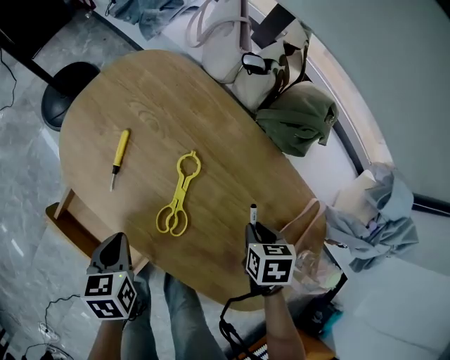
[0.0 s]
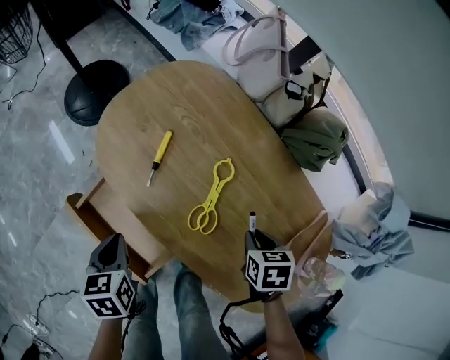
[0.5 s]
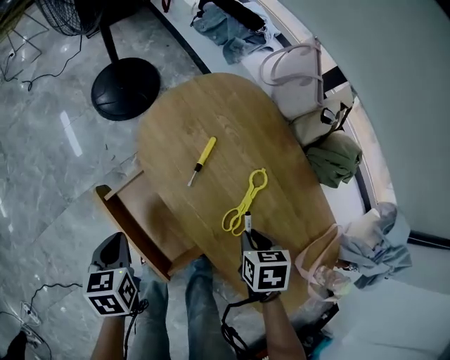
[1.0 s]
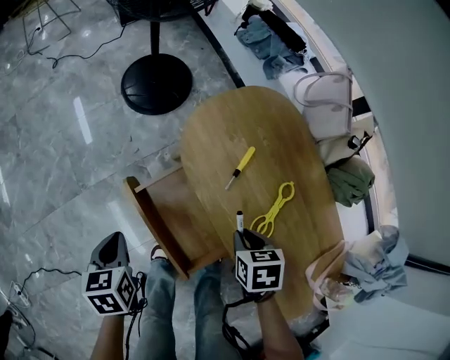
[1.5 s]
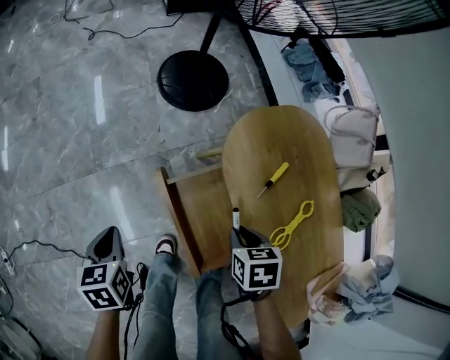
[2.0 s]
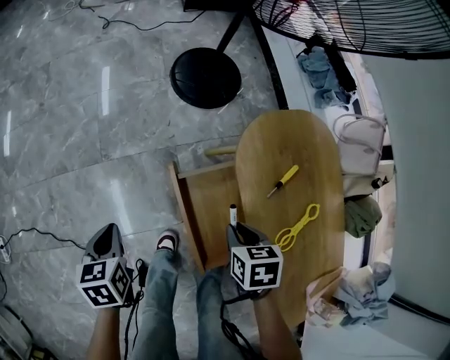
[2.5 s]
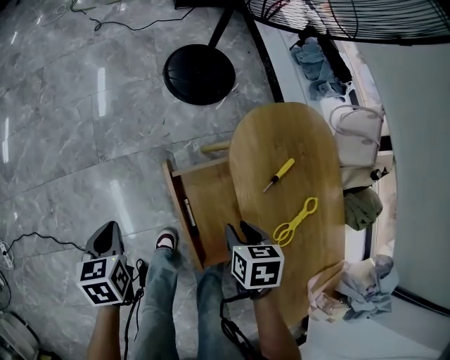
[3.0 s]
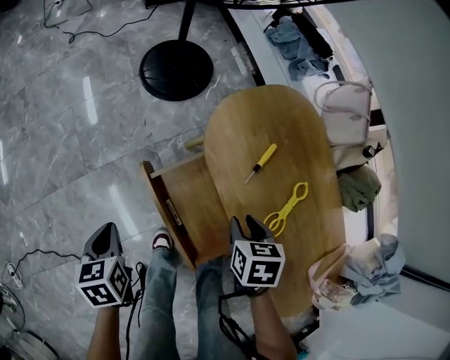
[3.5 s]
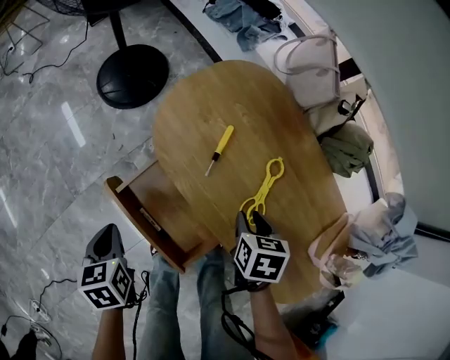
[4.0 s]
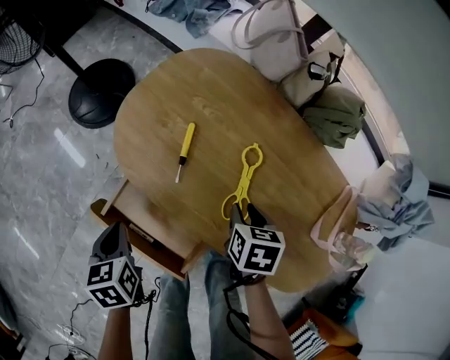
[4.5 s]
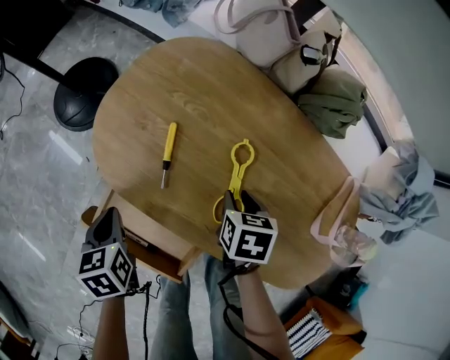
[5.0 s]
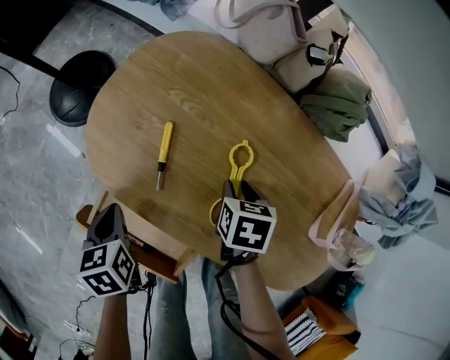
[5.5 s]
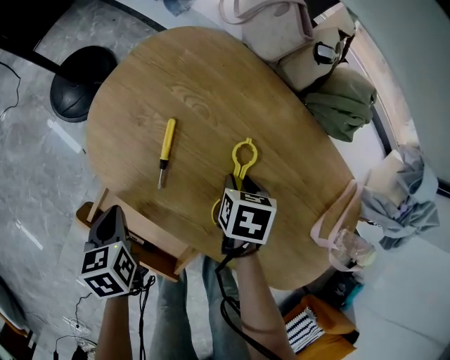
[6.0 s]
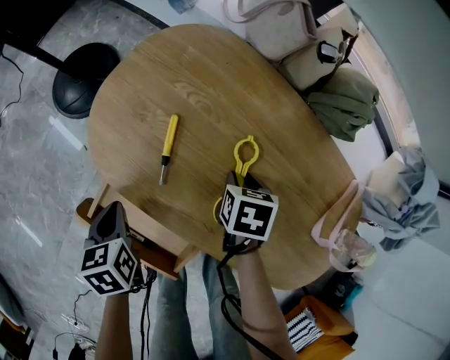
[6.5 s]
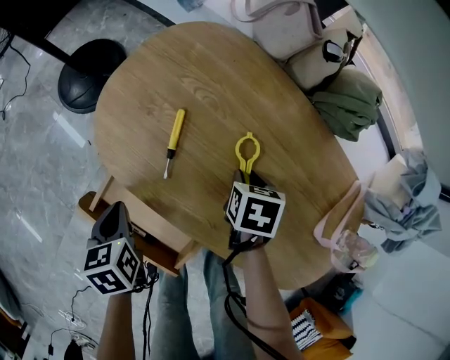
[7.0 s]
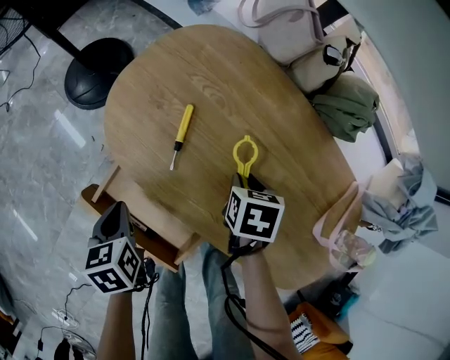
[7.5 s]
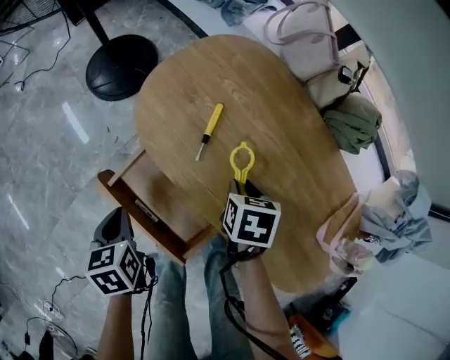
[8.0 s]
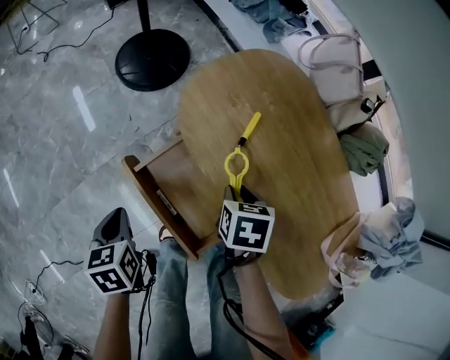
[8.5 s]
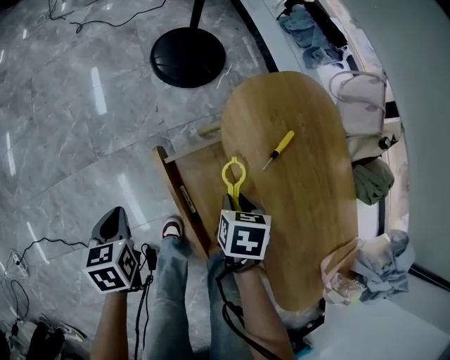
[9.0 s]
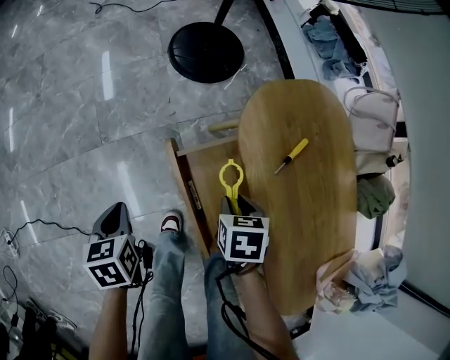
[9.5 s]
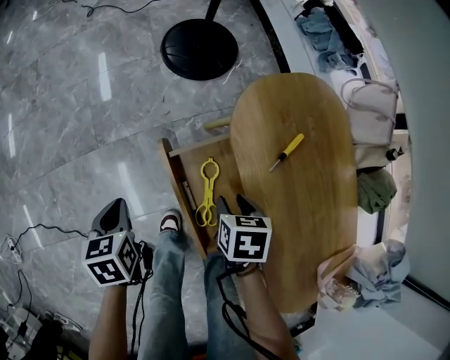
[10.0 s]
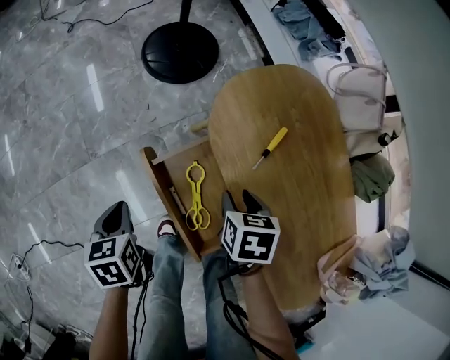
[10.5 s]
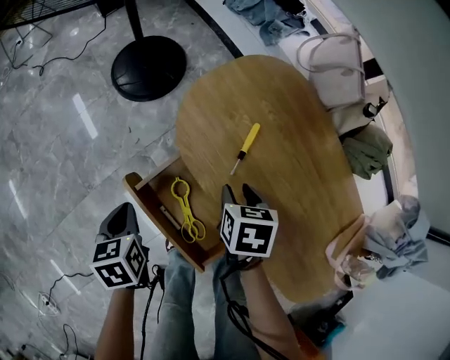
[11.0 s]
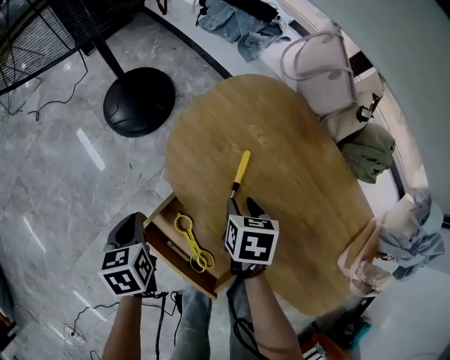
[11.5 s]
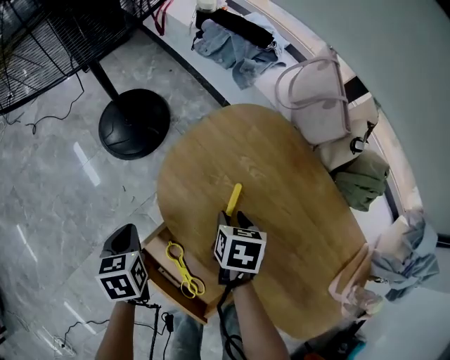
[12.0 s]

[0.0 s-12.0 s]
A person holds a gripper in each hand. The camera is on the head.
0.0 to 2.0 s: The left gripper moves roughly 40 cm, and swivels roughly 40 degrees. Meanwhile the right gripper shifts by roughly 40 cm, and rotates some 30 degrees.
2.0 to 4.0 s: The right gripper shifts by approximately 15 cm, and rotates about 30 degrees. The left gripper shifts by some 15 cm.
4.0 to 6.0 s: The right gripper travels forward, to the right and downward by roughly 15 cm. Meanwhile the left gripper heads forward and to the right, covering roughly 20 cm.
6.0 to 8.0 s: The left gripper goes roughly 15 cm backward and to the left. Meanwhile the right gripper travels to the left and backward by roughly 10 cm.
8.0 to 10.0 s: The left gripper moves about 20 cm, and turns by roughly 20 degrees. Meanwhile the right gripper moves approximately 20 cm, and changes its angle by about 30 degrees.
10.0 to 12.0 s: The two grippers go roughly 25 cm forward and to the right. The right gripper changes its angle by some 30 degrees; the left gripper swivels approximately 20 degrees.

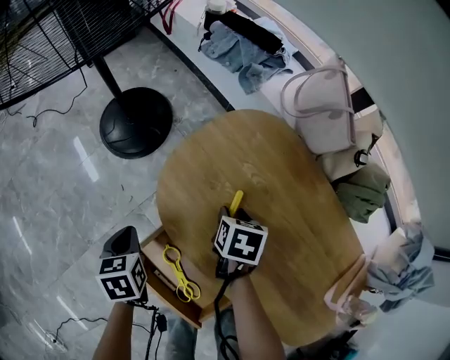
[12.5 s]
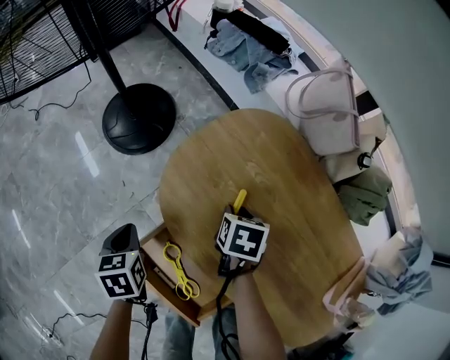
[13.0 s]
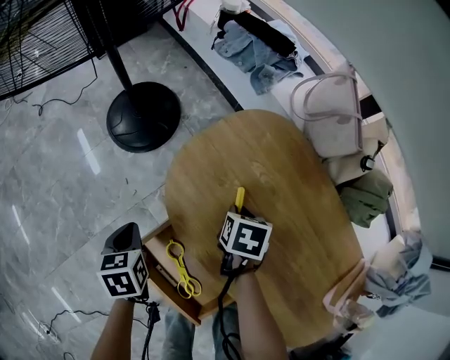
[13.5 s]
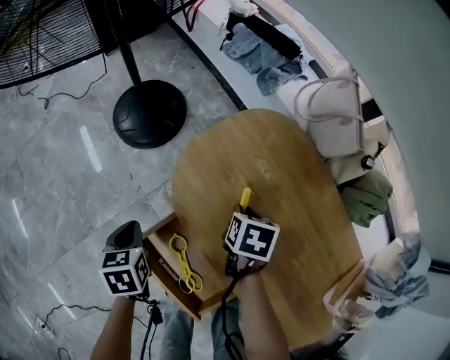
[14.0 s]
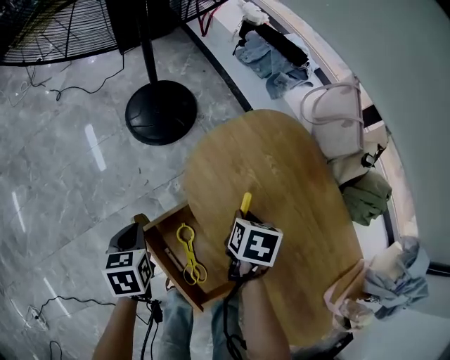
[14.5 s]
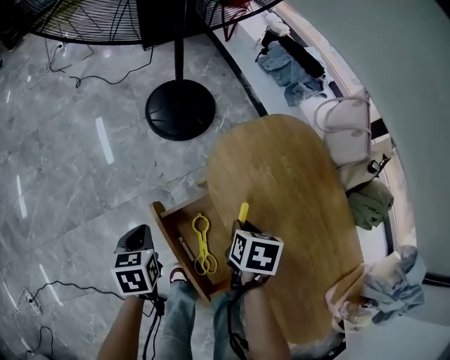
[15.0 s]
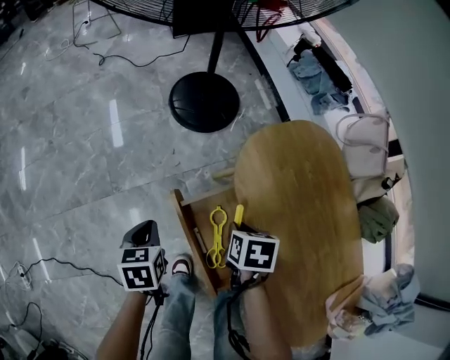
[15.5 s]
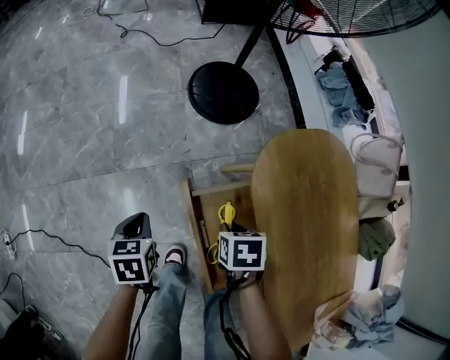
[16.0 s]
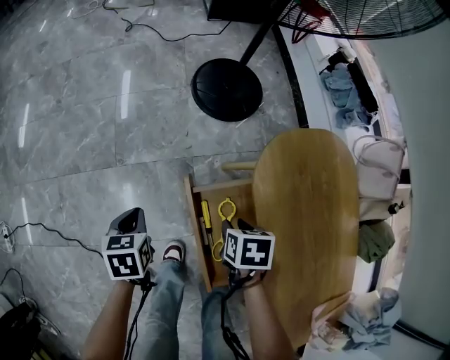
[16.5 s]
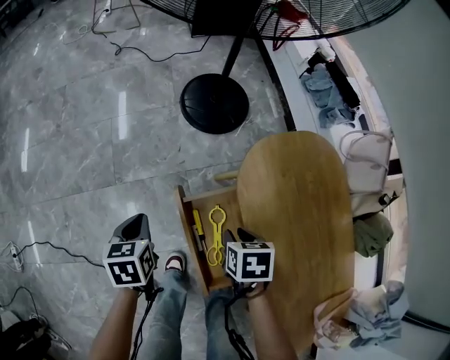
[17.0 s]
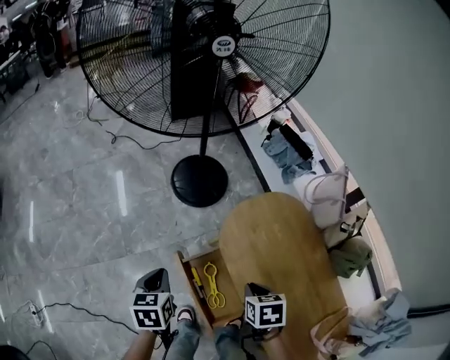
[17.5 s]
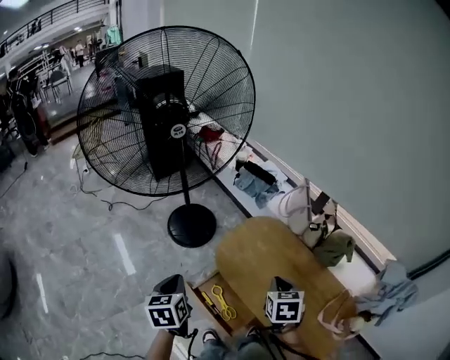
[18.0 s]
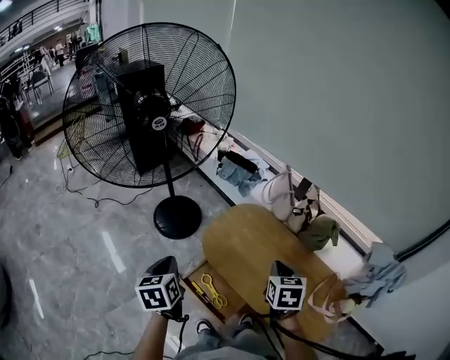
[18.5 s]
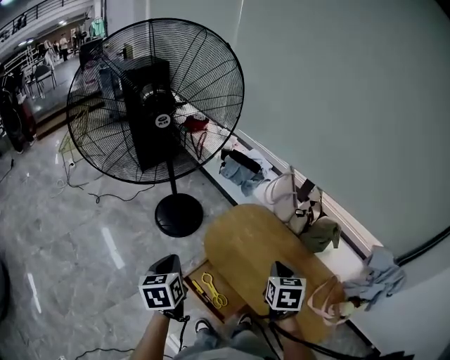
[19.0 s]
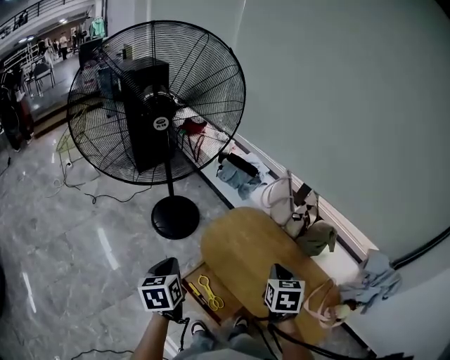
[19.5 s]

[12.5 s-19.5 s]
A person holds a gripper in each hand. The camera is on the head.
12.5 to 14.5 s: Both grippers move backward, roughly 10 cm. The right gripper closes its fingers.
14.5 to 16.0 s: The left gripper ends up roughly 15 cm from where it was. Meanwhile the right gripper ends up roughly 20 cm from where it was, and swivels roughly 40 degrees.
16.0 to 17.5 s: The grippers both shift upward by about 20 cm.
17.5 to 19.5 s: Both grippers move upward, roughly 25 cm. The right gripper rotates roughly 40 degrees.

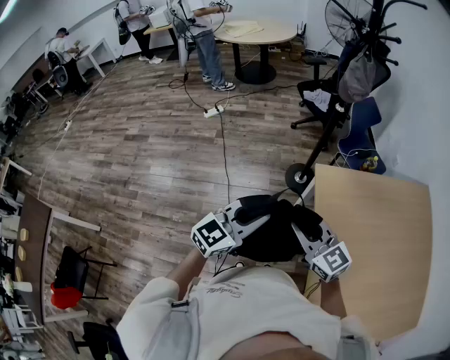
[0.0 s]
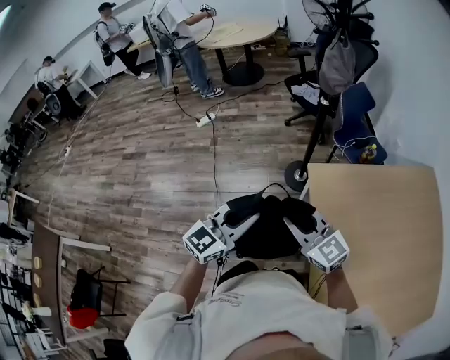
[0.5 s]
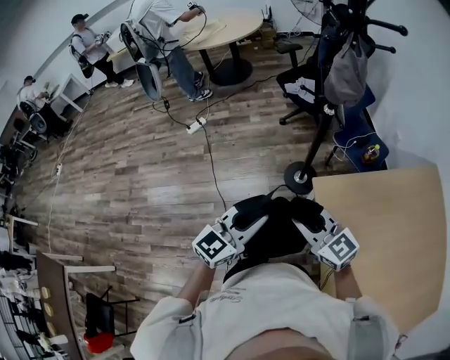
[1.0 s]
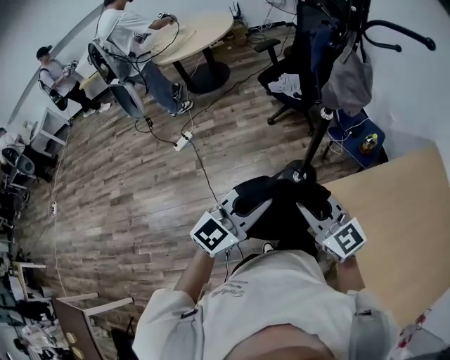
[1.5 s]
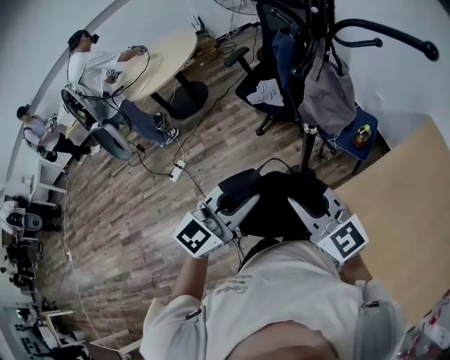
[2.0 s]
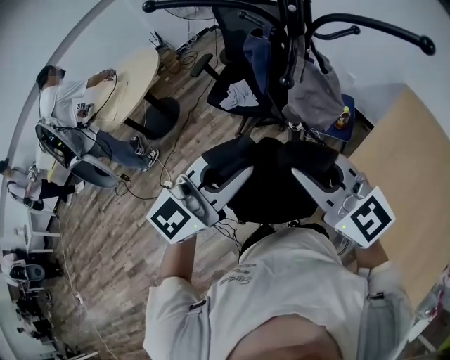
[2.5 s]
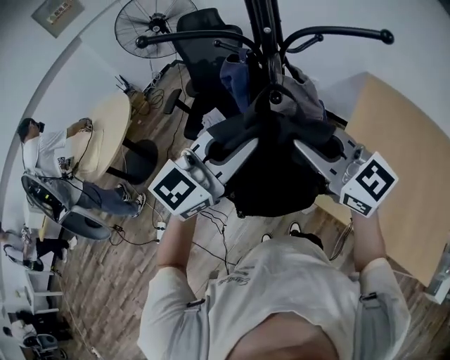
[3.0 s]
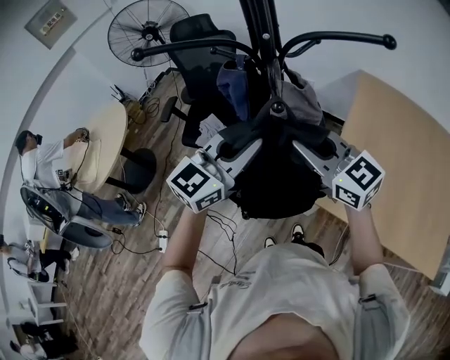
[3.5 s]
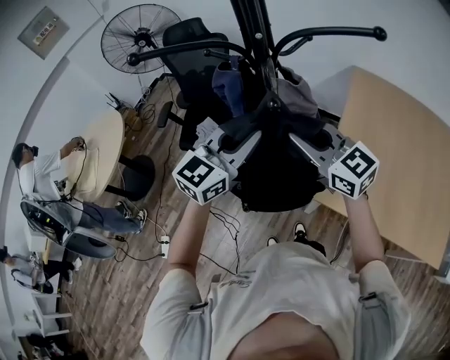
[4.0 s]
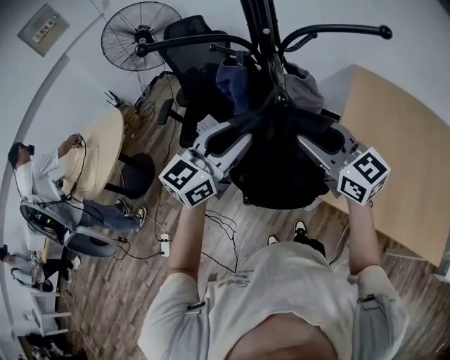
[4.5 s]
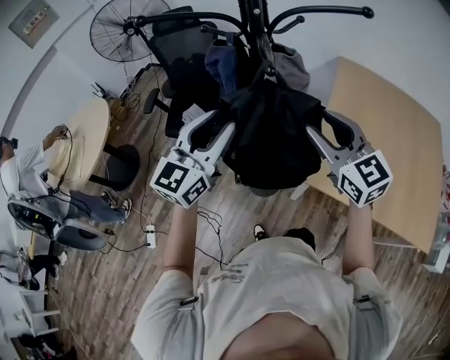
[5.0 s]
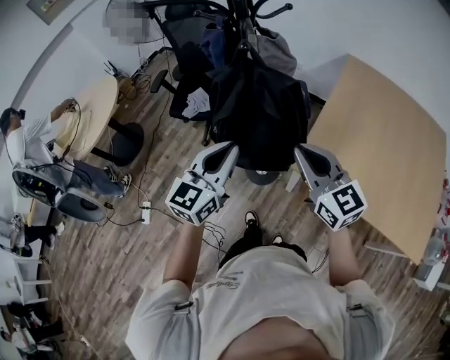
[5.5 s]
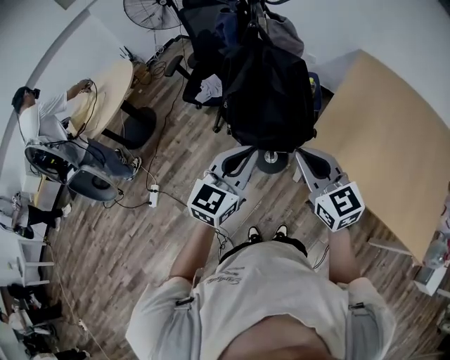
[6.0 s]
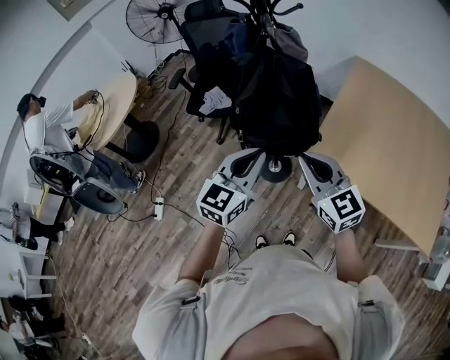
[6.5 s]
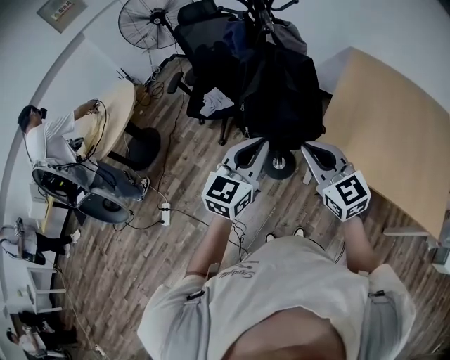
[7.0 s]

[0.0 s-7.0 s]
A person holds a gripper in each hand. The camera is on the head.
0.0 to 2.0 s: The two grippers travel together, about 40 cm. The right gripper rotates approximately 20 degrees, while the left gripper changes its angle by approximately 20 degrees.
2.0 to 3.5 s: The right gripper ends up roughly 15 cm from where it was, and swivels about 30 degrees; the left gripper ends up about 20 cm from where it was, and rotates approximately 30 degrees.
3.5 to 5.0 s: The left gripper goes some 5 cm to the left, and opens, while the right gripper heads to the right, covering about 5 cm, turns by approximately 20 degrees, and opens its fingers.
5.0 to 7.0 s: Both grippers travel together backward, roughly 20 cm. The right gripper closes its fingers, while the left gripper closes.
